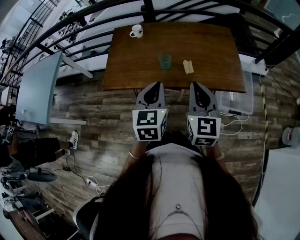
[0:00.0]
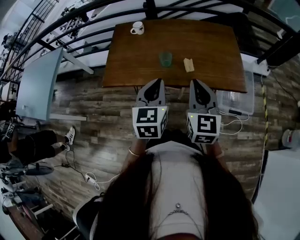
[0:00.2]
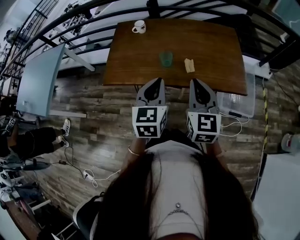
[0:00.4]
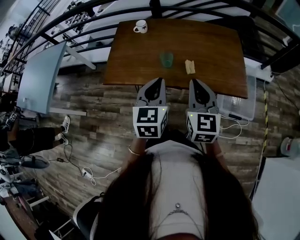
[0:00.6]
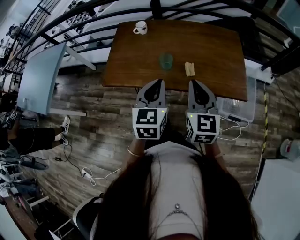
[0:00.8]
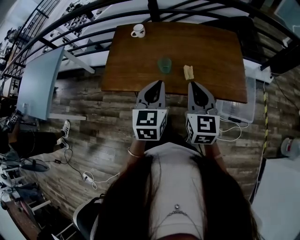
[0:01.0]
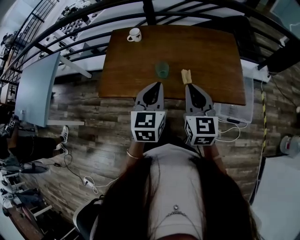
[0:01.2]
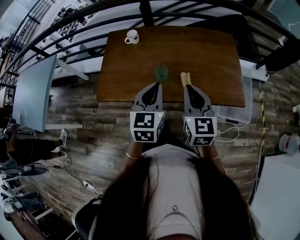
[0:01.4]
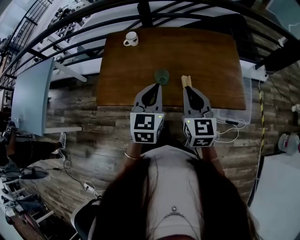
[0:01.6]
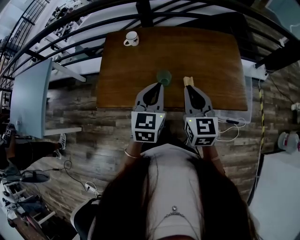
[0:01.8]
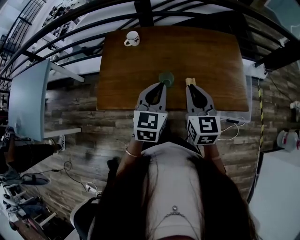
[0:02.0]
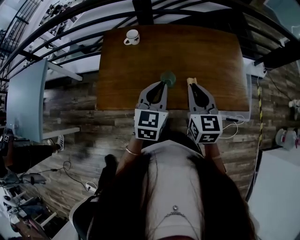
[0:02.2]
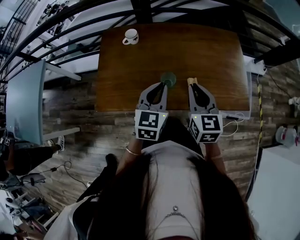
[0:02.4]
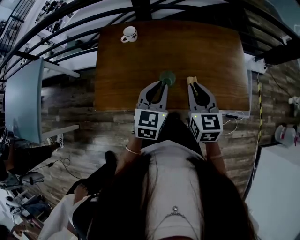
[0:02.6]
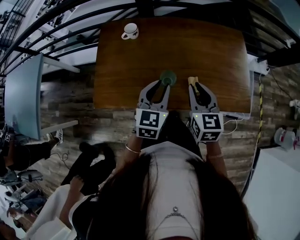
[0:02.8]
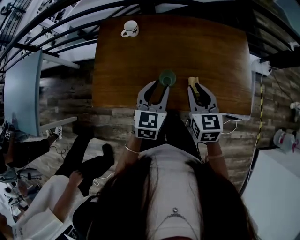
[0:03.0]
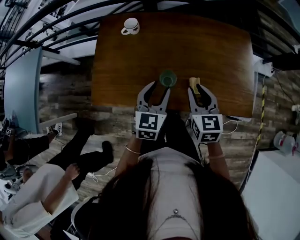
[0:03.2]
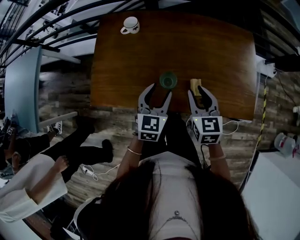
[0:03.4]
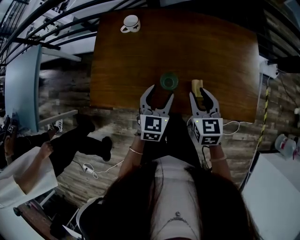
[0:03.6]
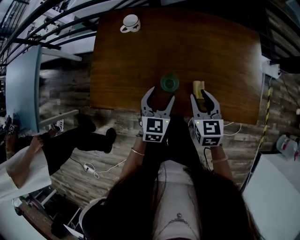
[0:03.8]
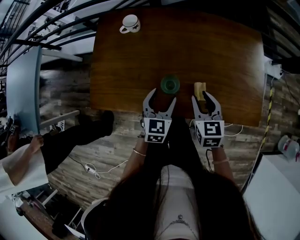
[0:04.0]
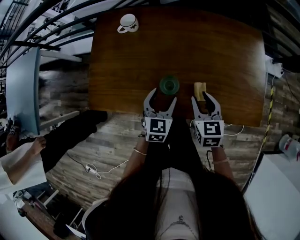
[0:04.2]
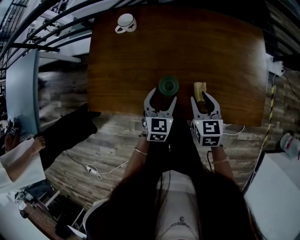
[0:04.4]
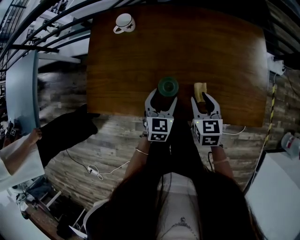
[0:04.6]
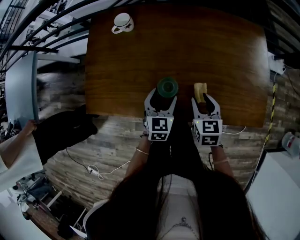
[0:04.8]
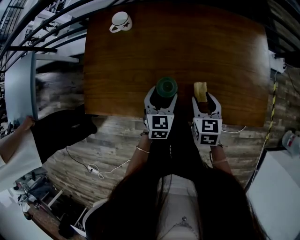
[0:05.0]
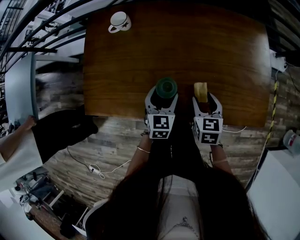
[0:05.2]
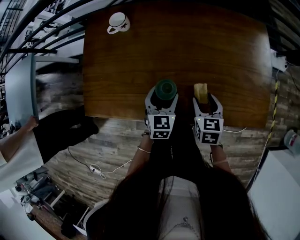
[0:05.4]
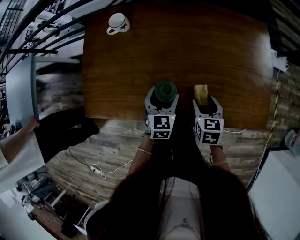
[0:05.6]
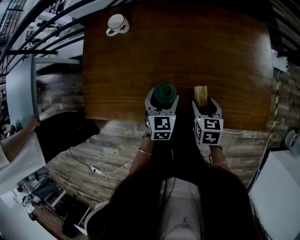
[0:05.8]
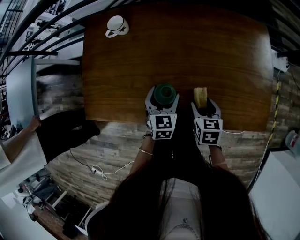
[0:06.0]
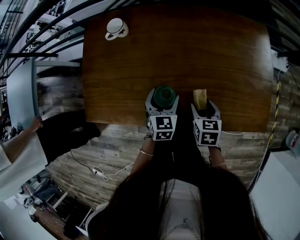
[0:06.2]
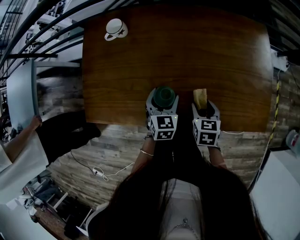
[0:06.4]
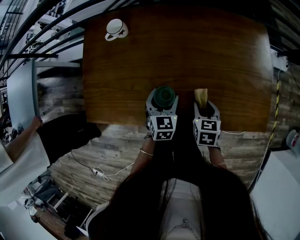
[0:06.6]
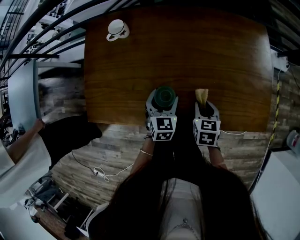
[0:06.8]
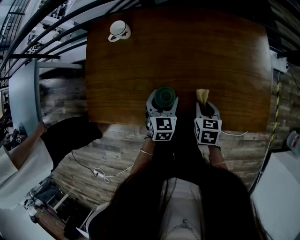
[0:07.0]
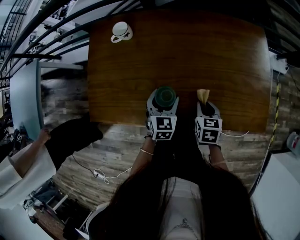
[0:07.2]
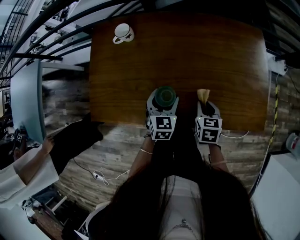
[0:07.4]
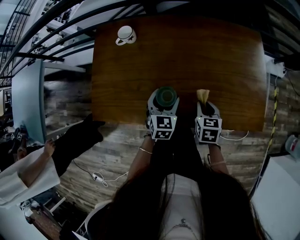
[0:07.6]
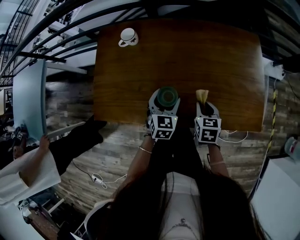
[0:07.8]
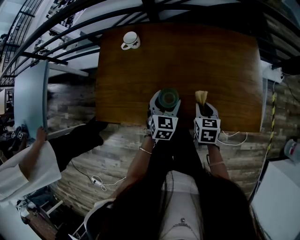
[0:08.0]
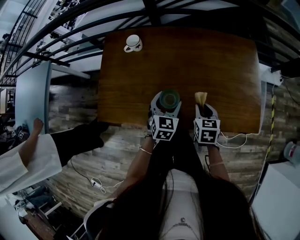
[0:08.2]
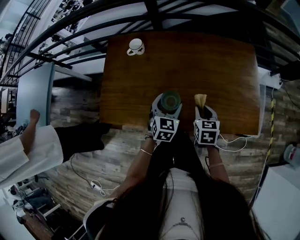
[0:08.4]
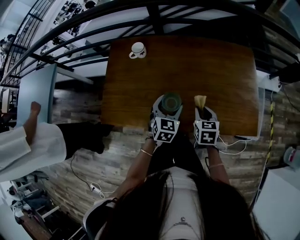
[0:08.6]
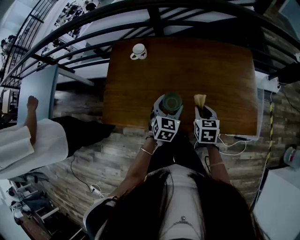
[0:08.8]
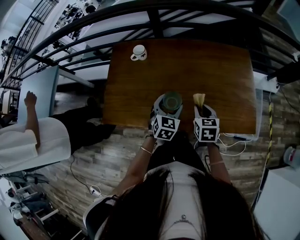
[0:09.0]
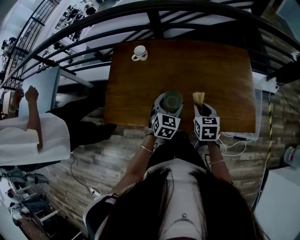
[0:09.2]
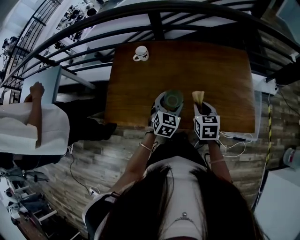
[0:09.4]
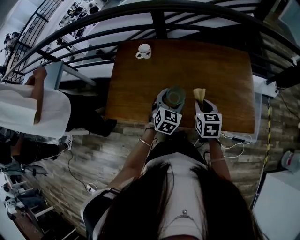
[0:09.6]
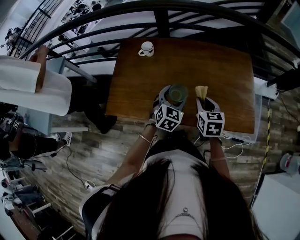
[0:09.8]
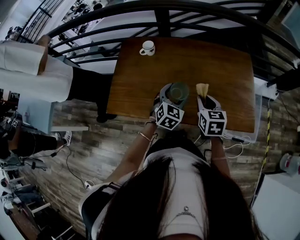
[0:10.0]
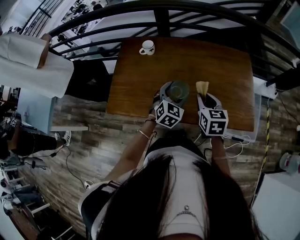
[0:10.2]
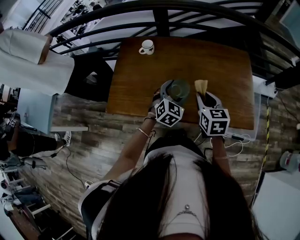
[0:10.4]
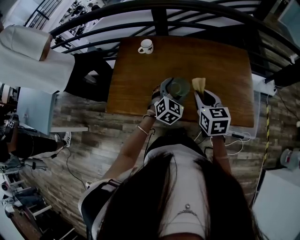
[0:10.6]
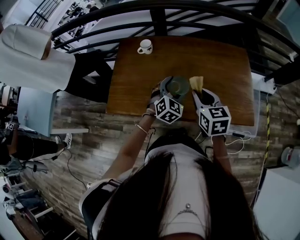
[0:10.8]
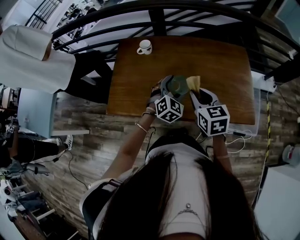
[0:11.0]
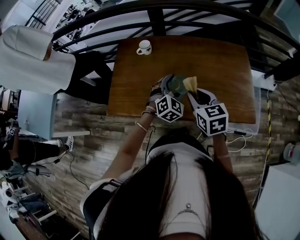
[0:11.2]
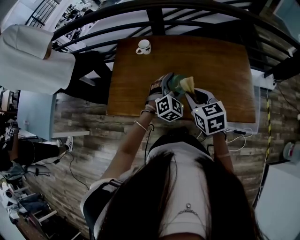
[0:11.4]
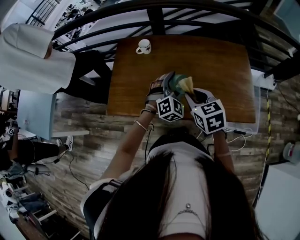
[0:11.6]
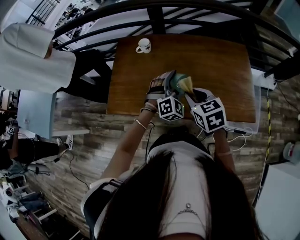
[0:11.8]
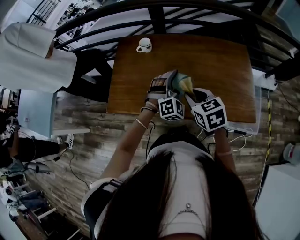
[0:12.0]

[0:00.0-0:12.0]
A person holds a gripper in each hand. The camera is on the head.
0:00.0 to 0:01.6: Both grippers move forward, approximately 15 cm.
0:01.6 to 0:03.0: The left gripper heads downward and forward, covering some 10 cm, and opens, while the right gripper moves forward and downward, about 10 cm.
0:03.0 to 0:04.4: The two grippers go approximately 15 cm downward. The left gripper opens.
0:04.4 to 0:06.0: The left gripper travels downward by about 5 cm; the right gripper heads downward, covering roughly 10 cm, and opens its fingers.
0:06.0 to 0:07.6: The right gripper closes.
0:07.6 to 0:09.0: Both grippers move upward, roughly 10 cm.
0:09.0 to 0:10.4: The right gripper shifts about 10 cm upward.
0:10.4 to 0:12.0: The left gripper swivels about 30 degrees; the right gripper goes roughly 5 cm to the left.

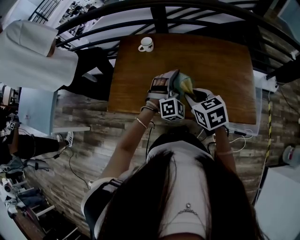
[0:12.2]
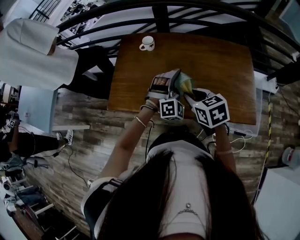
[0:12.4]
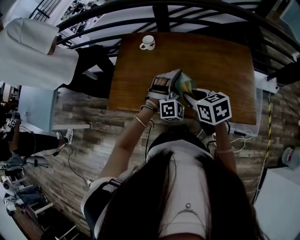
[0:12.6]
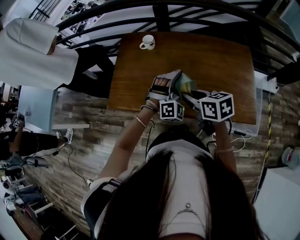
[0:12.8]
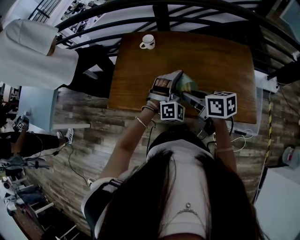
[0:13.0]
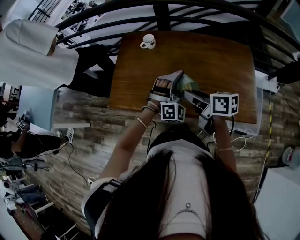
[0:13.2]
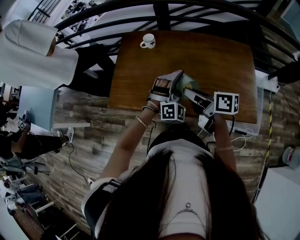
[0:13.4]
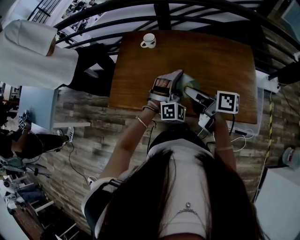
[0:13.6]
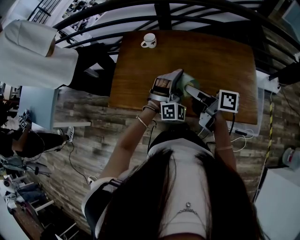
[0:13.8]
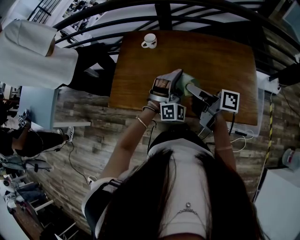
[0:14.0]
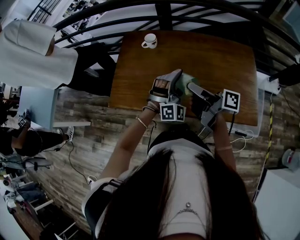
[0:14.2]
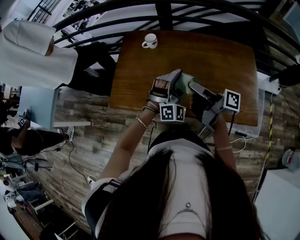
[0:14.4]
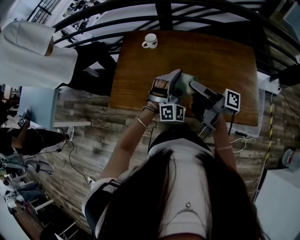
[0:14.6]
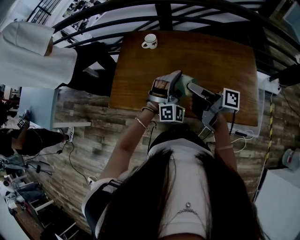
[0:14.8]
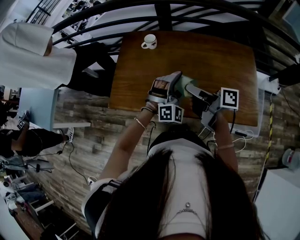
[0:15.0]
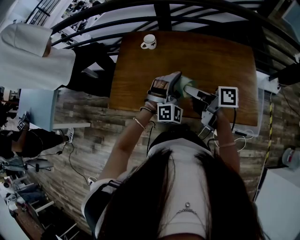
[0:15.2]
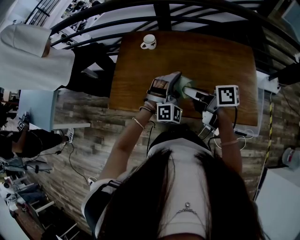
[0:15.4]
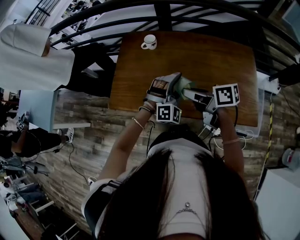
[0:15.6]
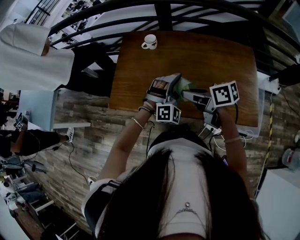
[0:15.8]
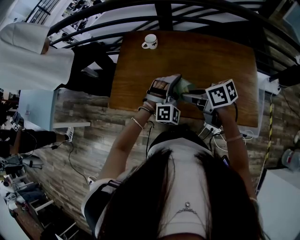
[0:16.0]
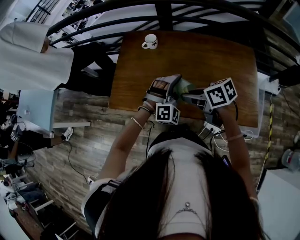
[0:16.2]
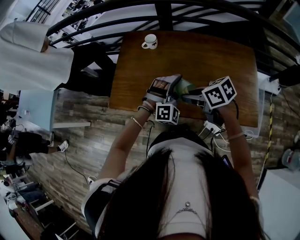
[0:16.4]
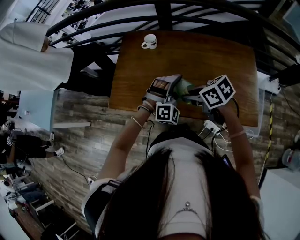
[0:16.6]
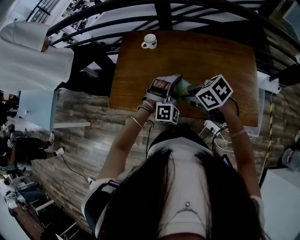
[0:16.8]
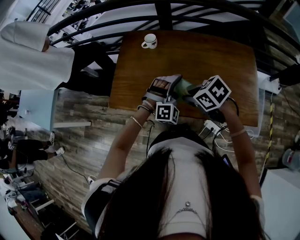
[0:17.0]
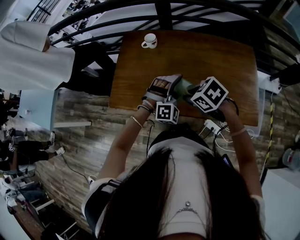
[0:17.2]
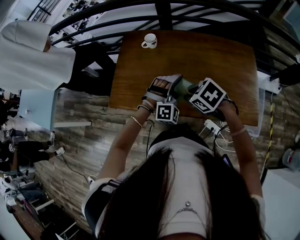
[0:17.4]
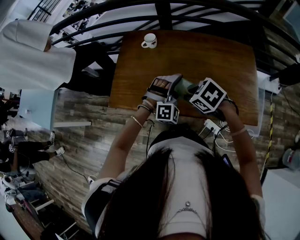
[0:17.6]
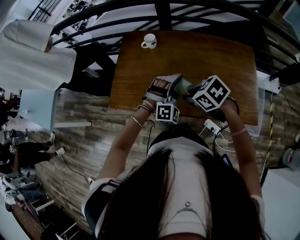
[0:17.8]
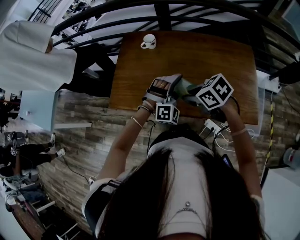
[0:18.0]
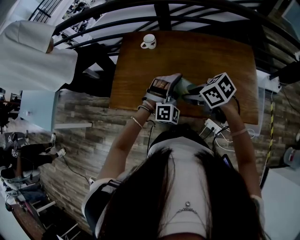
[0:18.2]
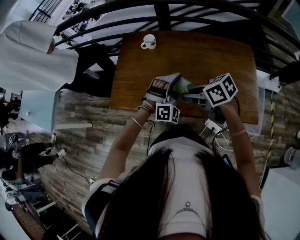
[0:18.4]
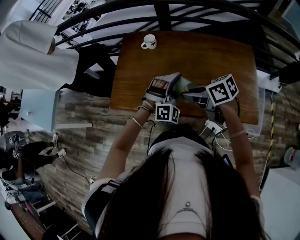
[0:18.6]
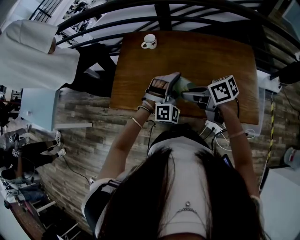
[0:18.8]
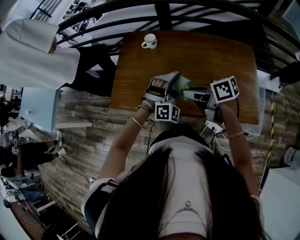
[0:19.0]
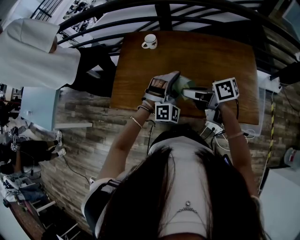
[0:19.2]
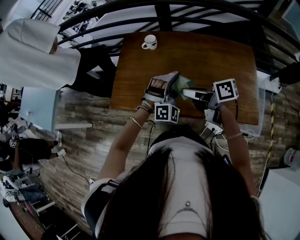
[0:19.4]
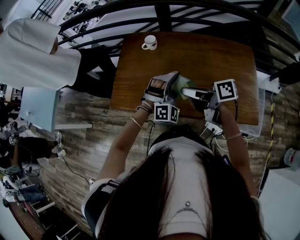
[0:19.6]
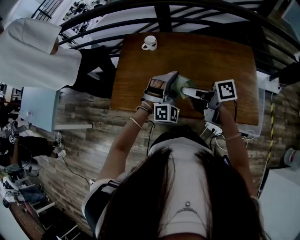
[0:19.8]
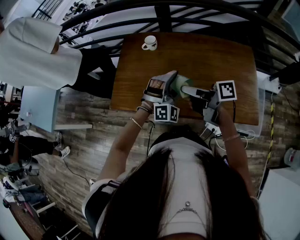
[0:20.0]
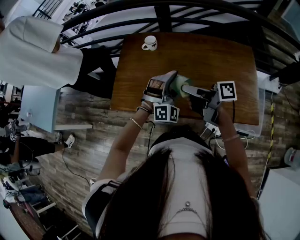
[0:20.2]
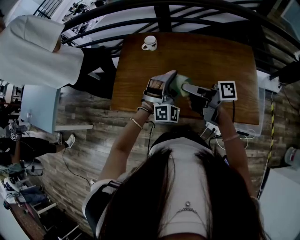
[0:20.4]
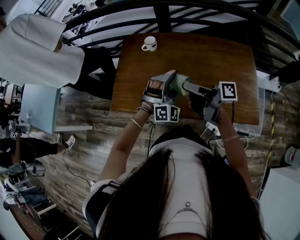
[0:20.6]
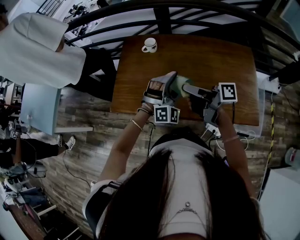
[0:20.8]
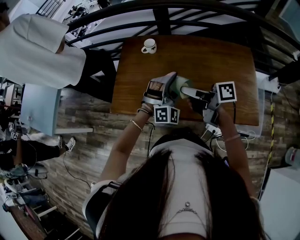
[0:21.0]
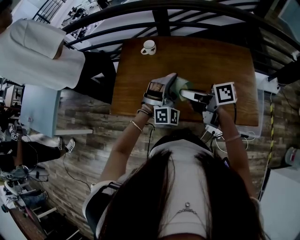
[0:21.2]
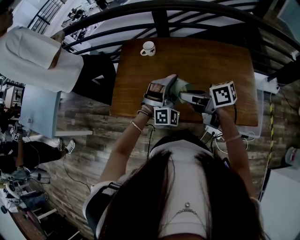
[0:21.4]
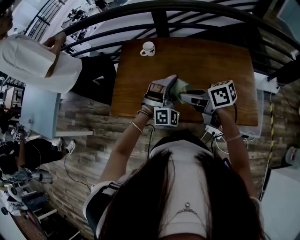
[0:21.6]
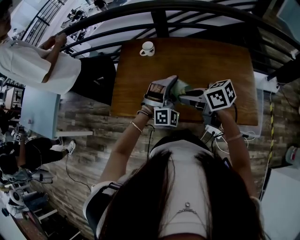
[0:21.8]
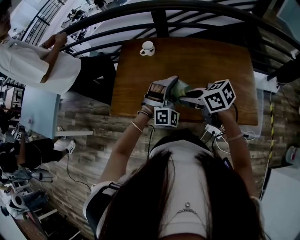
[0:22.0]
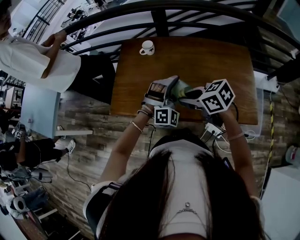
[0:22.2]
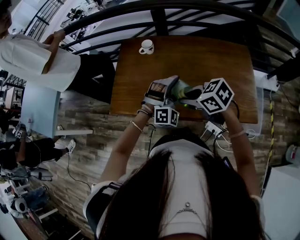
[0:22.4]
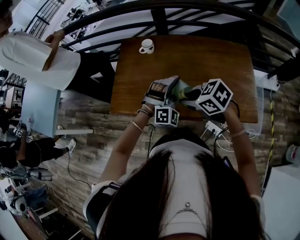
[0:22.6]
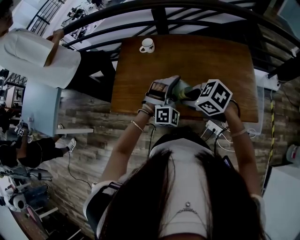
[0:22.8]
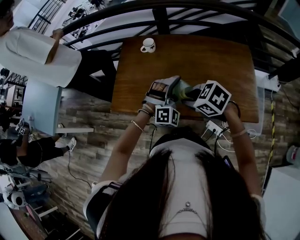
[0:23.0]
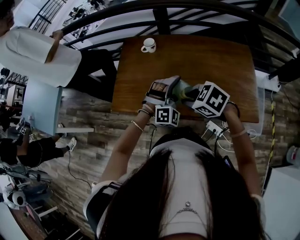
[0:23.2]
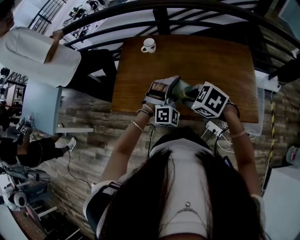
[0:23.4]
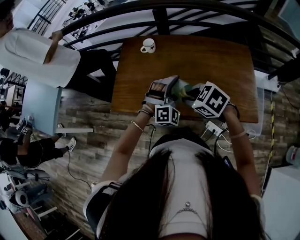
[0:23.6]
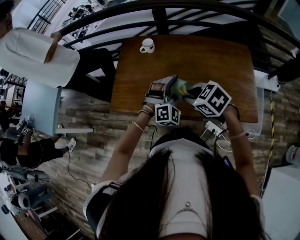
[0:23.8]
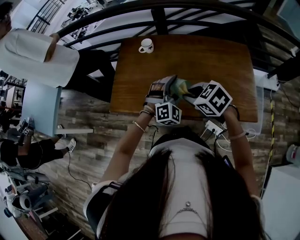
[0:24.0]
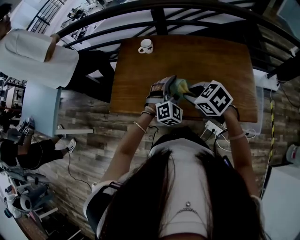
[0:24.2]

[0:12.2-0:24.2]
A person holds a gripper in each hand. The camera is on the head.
0:12.2 to 0:13.8: The right gripper tilts its fingers some 30 degrees upward.
0:15.2 to 0:16.6: The right gripper changes place by about 5 cm, and tilts its fingers roughly 30 degrees downward.
0:18.2 to 0:19.8: The right gripper points its fingers approximately 30 degrees further upward.
0:19.8 to 0:21.2: There are only small adjustments of the grippers.
0:21.2 to 0:22.6: The right gripper shifts by about 5 cm, and angles its fingers downward, by roughly 40 degrees.
0:22.6 to 0:24.2: The grippers make only small movements.
